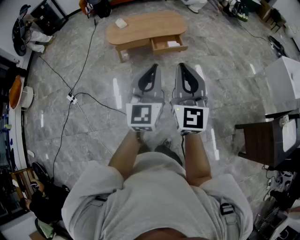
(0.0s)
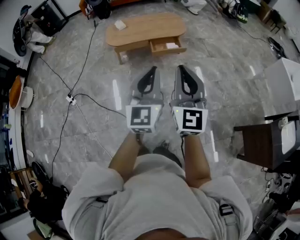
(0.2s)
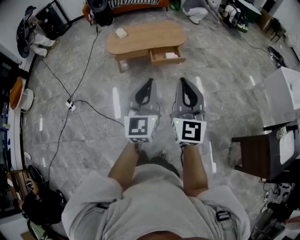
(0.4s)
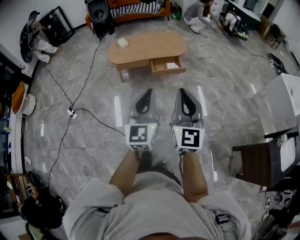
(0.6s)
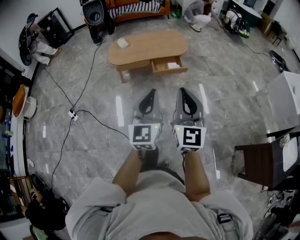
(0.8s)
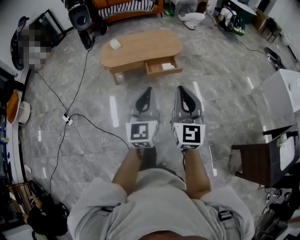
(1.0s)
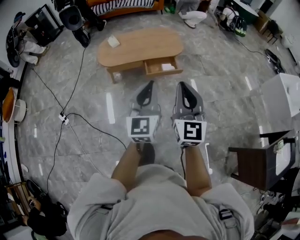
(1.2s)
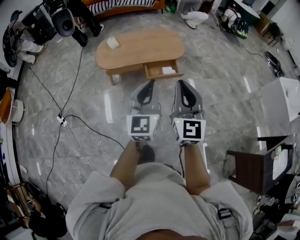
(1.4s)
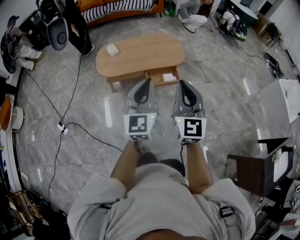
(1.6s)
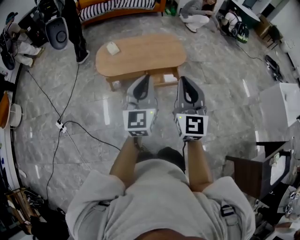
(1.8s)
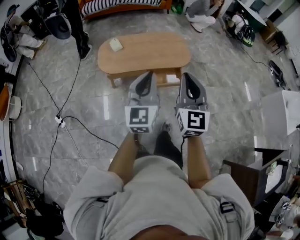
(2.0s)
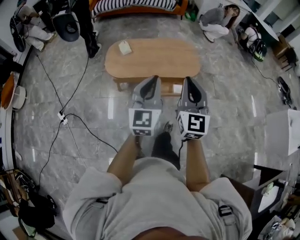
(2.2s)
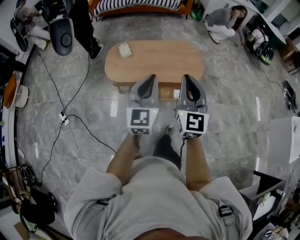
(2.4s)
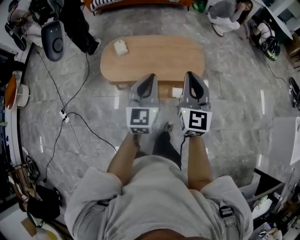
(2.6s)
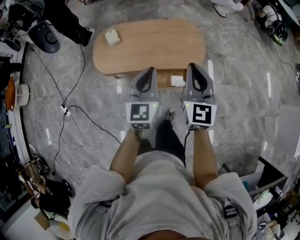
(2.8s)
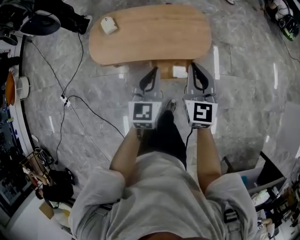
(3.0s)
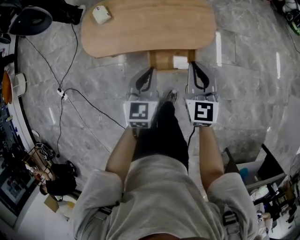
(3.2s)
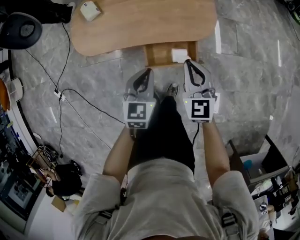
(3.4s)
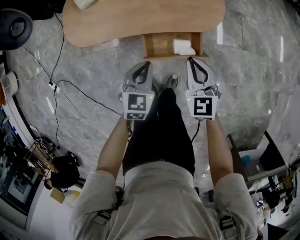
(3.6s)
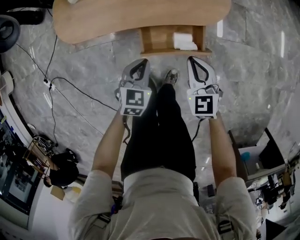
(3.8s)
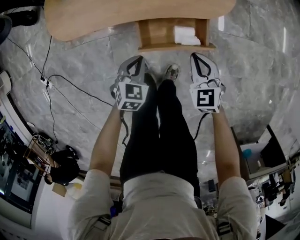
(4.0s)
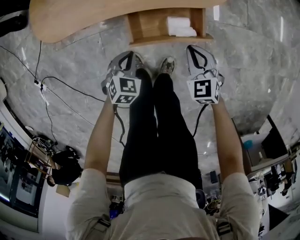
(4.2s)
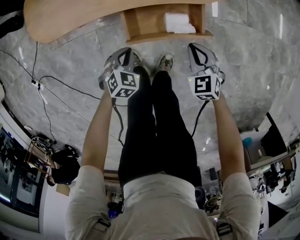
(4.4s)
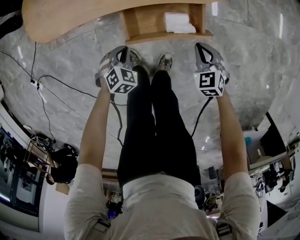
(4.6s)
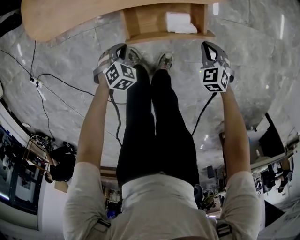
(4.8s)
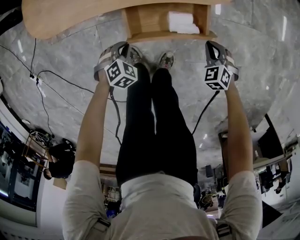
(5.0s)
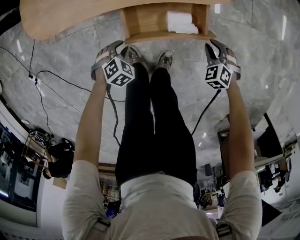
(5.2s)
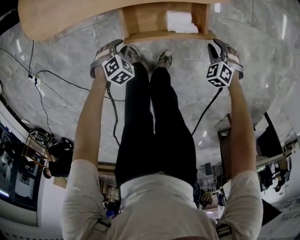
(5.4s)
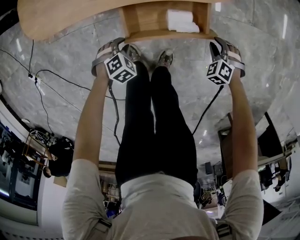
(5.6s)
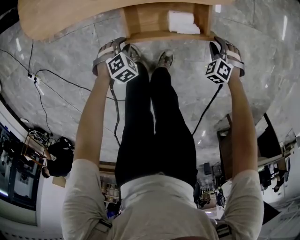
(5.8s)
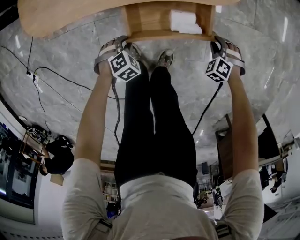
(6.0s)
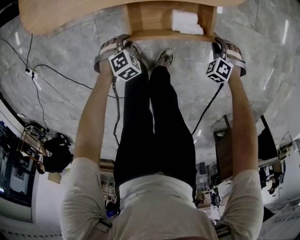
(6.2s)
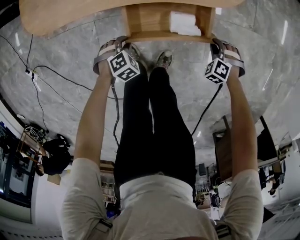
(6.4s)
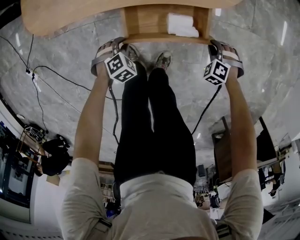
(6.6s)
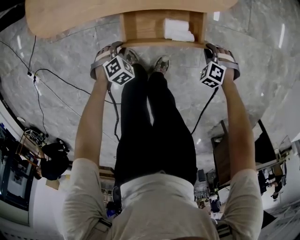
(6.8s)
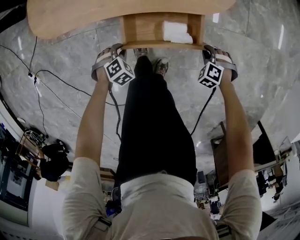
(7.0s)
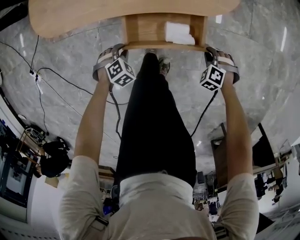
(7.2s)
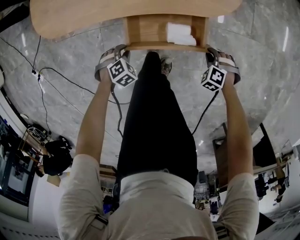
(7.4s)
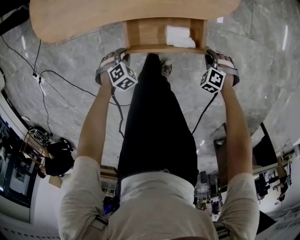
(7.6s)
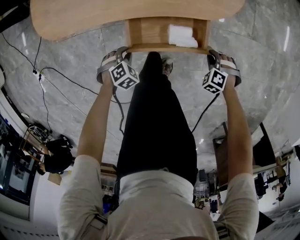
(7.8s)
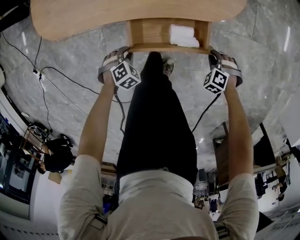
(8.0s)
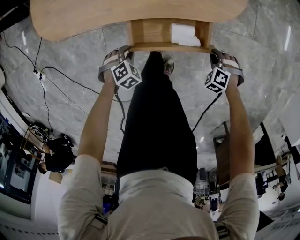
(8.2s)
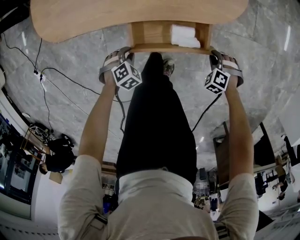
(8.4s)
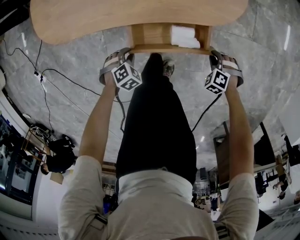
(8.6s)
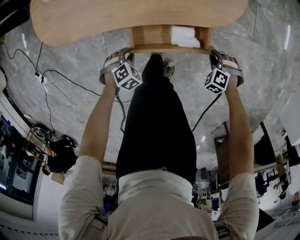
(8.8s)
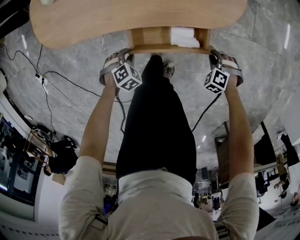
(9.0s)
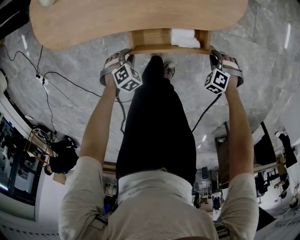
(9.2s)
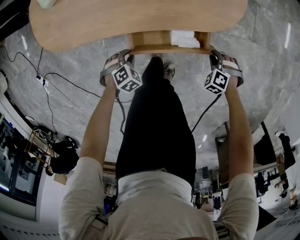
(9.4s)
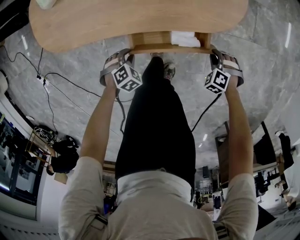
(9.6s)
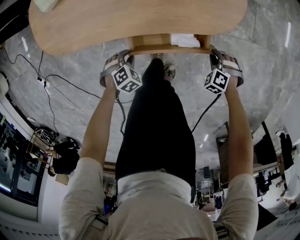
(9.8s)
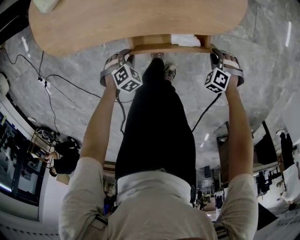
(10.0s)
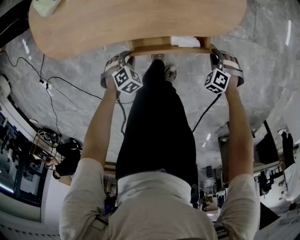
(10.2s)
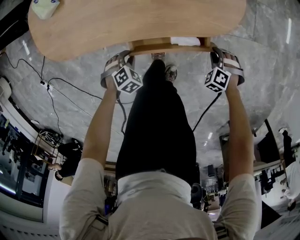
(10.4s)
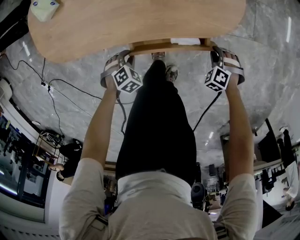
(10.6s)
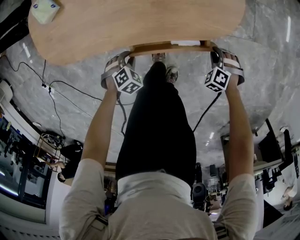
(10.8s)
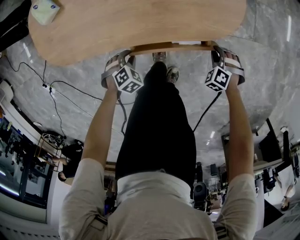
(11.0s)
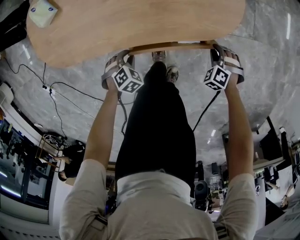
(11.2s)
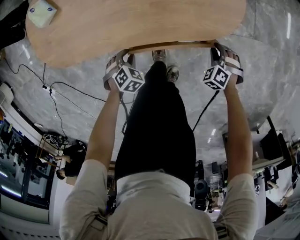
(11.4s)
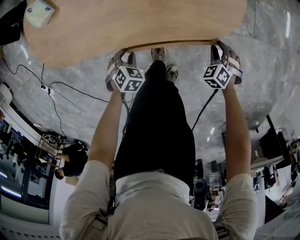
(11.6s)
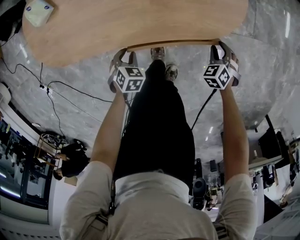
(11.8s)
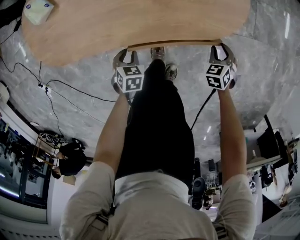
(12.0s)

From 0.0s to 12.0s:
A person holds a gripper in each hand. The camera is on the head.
From 0.0s to 1.6s: The grippers both shift forward by about 30 cm.
From 1.6s to 3.0s: Both grippers move forward and downward, some 40 cm. The right gripper swivels roughly 20 degrees. The left gripper swivels some 20 degrees.
From 3.0s to 4.4s: Both grippers travel together downward, approximately 50 cm. The left gripper tilts its fingers approximately 40 degrees downward. The right gripper points its fingers some 30 degrees further downward.
From 4.4s to 6.0s: The right gripper shifts approximately 15 cm downward, changes its angle by approximately 40 degrees, and opens its fingers; the left gripper travels downward by roughly 10 cm, turns by approximately 20 degrees, and opens up.
From 6.0s to 9.0s: There are only small adjustments of the grippers.
From 9.0s to 10.4s: There are only small adjustments of the grippers.
From 10.4s to 12.0s: The left gripper rolls counterclockwise, seen from behind, by approximately 40 degrees, while the right gripper twists about 40 degrees clockwise, seen from behind.

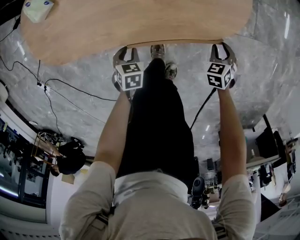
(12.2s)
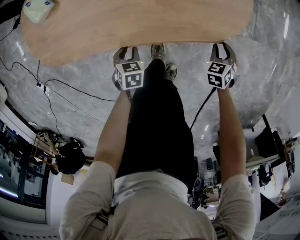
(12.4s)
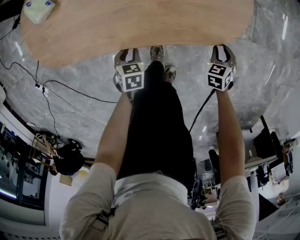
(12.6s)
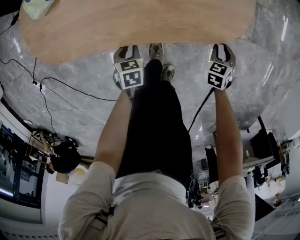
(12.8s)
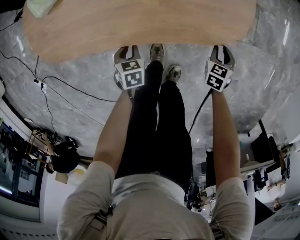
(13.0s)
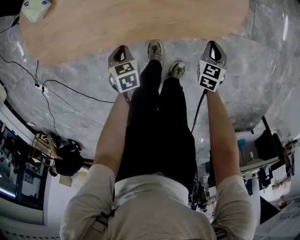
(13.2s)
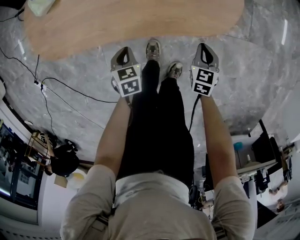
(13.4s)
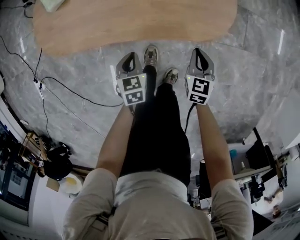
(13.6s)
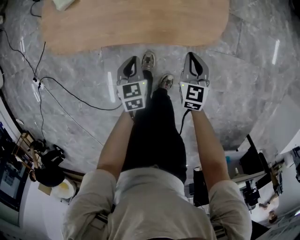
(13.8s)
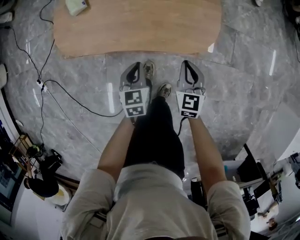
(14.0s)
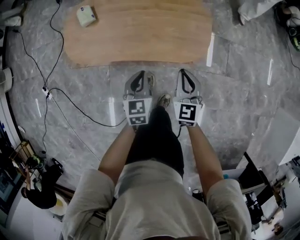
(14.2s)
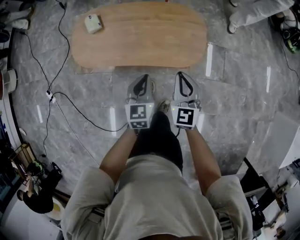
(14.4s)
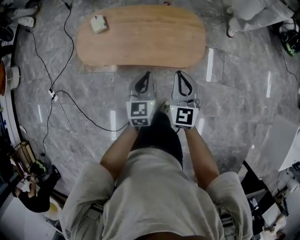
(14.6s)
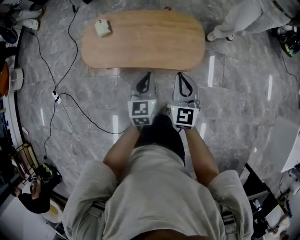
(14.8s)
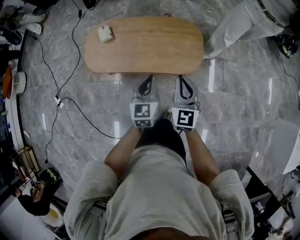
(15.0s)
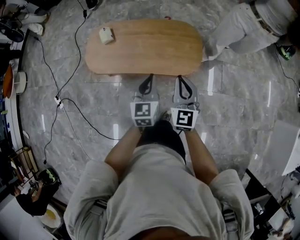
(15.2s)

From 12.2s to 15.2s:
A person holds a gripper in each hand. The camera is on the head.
From 12.2s to 13.8s: The left gripper moves upward, approximately 20 cm, swivels about 30 degrees, and closes up, while the right gripper moves upward and to the left, some 20 cm, rotates some 40 degrees, and closes.
From 13.8s to 15.2s: Both grippers move upward, approximately 35 cm. The left gripper changes its angle by about 30 degrees. Meanwhile the right gripper rotates roughly 30 degrees.

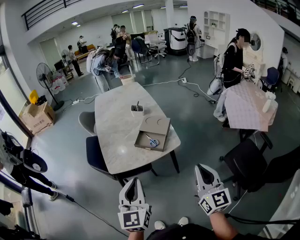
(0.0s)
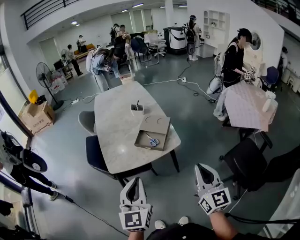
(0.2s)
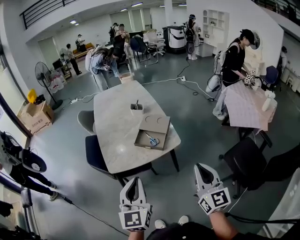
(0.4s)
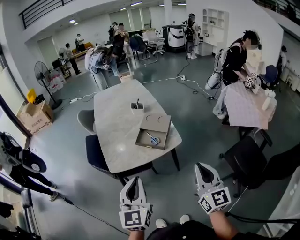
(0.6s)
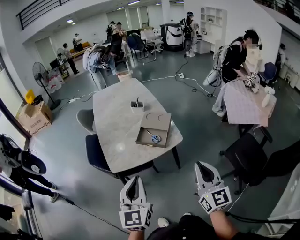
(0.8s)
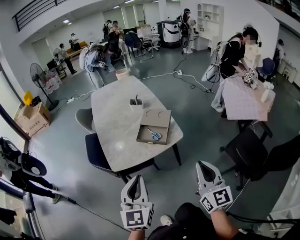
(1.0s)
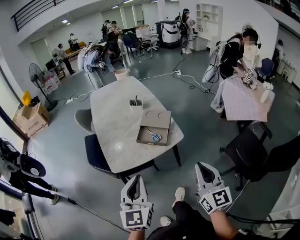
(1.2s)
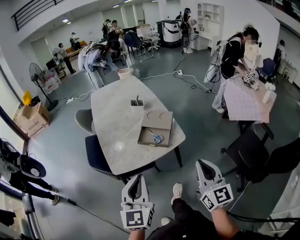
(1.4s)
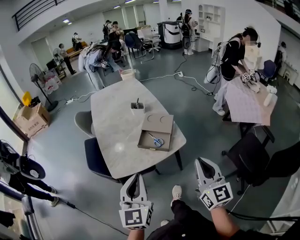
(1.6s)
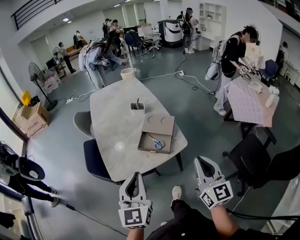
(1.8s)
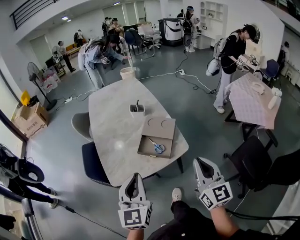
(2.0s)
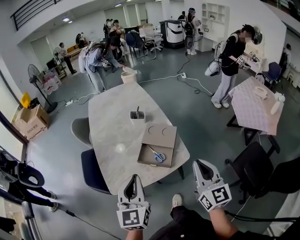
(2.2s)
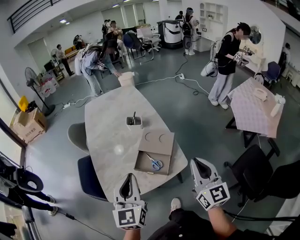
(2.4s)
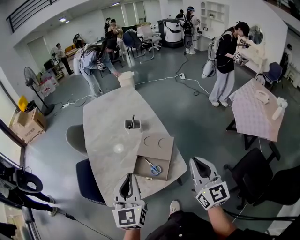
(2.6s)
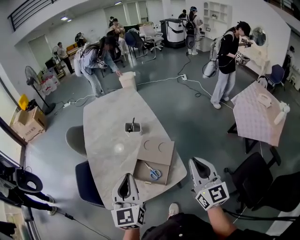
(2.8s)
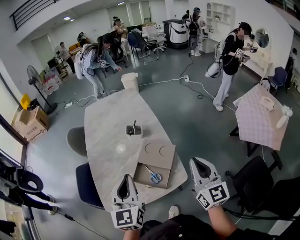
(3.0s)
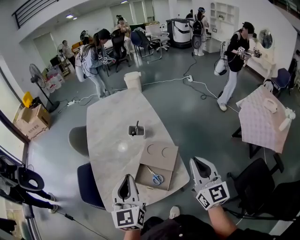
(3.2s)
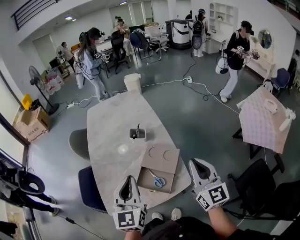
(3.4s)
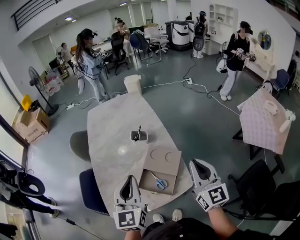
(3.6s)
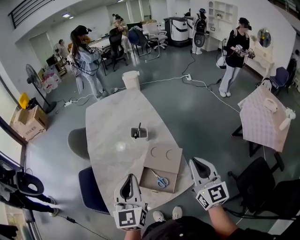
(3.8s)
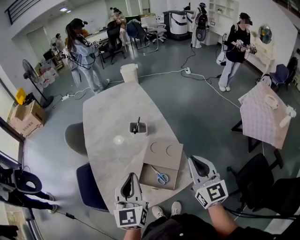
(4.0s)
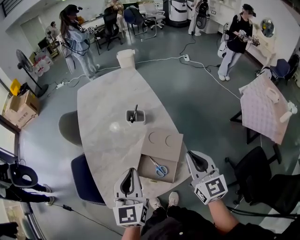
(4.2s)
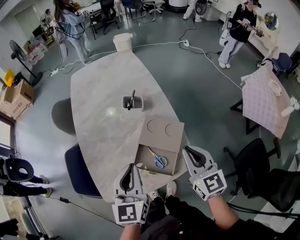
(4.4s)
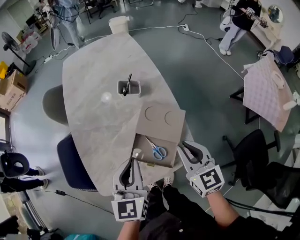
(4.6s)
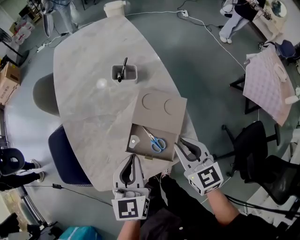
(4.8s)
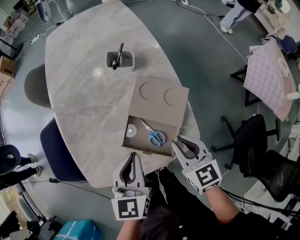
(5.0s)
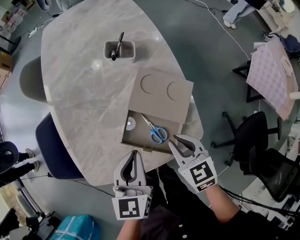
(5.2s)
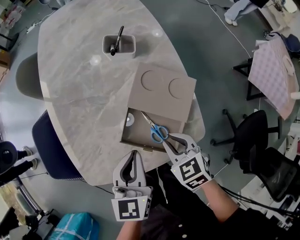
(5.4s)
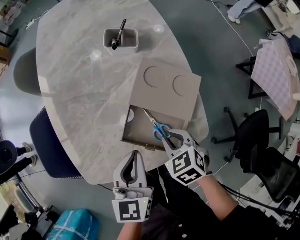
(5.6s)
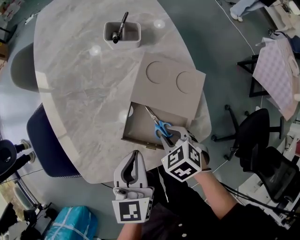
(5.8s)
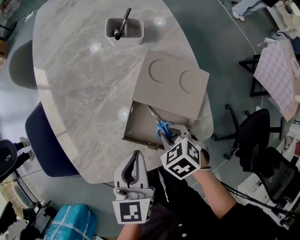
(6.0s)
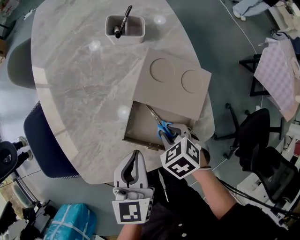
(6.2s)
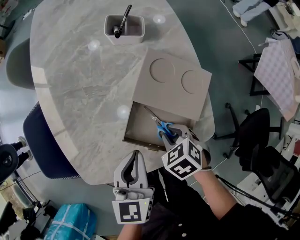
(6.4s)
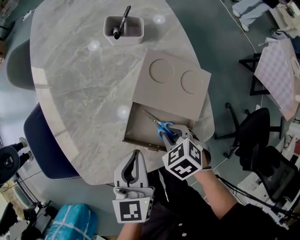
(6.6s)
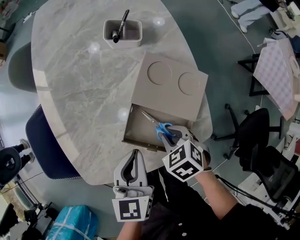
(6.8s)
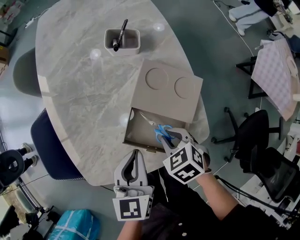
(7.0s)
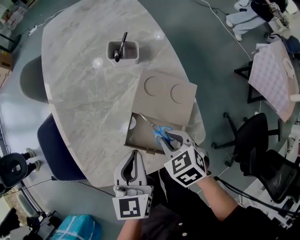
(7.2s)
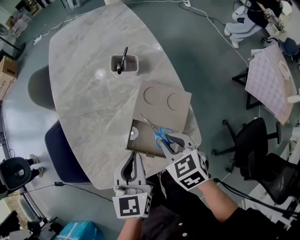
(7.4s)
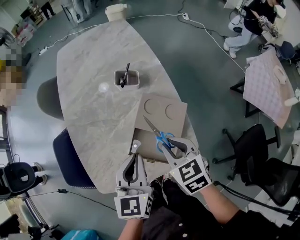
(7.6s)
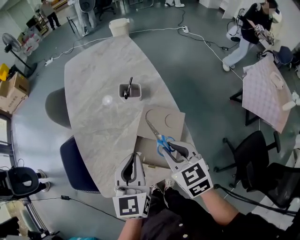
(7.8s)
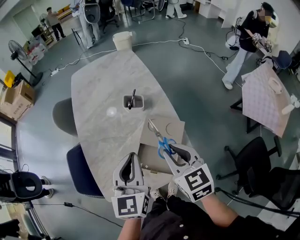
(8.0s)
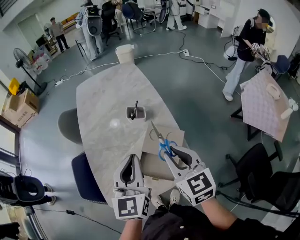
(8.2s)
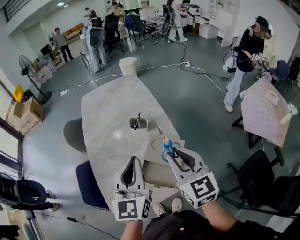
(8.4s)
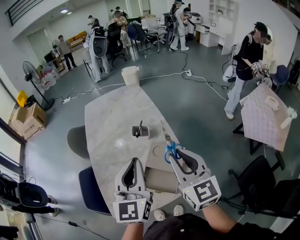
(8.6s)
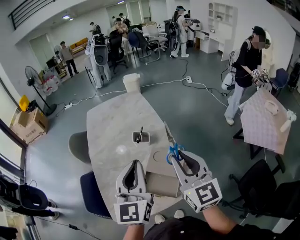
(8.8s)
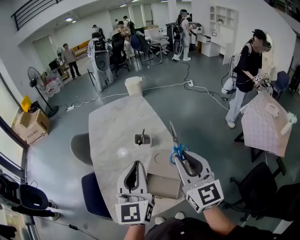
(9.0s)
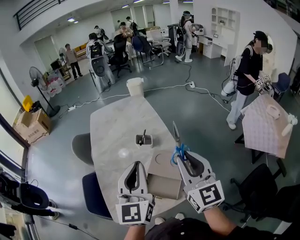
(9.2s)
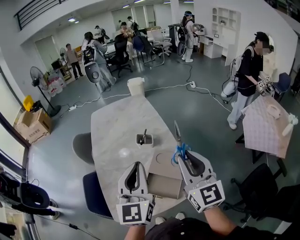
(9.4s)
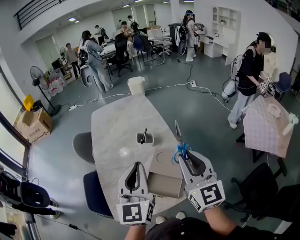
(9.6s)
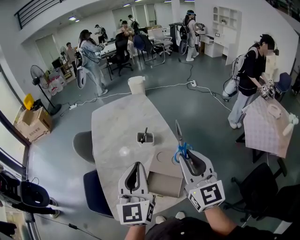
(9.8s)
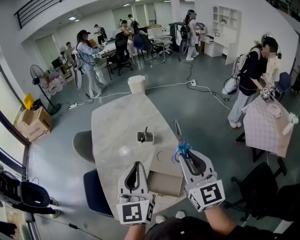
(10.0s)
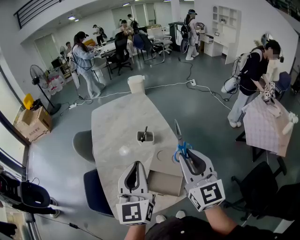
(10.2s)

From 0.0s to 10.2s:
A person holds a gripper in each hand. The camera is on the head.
From 0.0s to 1.4s: The right gripper shifts approximately 5 cm to the left. Meanwhile the left gripper changes place by roughly 5 cm.
From 1.4s to 3.0s: Both grippers move forward, roughly 30 cm.
From 3.0s to 4.4s: The right gripper heads downward, to the left and forward, covering roughly 15 cm, while the left gripper is displaced downward and forward by roughly 10 cm.
From 4.4s to 5.8s: The left gripper heads downward, covering approximately 20 cm. The right gripper heads downward, covering approximately 30 cm, and tilts its fingers some 60 degrees downward.
From 5.8s to 7.2s: The right gripper heads upward, covering some 5 cm.
From 7.2s to 8.8s: The two grippers go approximately 35 cm upward. The left gripper points its fingers some 30 degrees further upward. The right gripper angles its fingers upward, by approximately 60 degrees.
From 8.8s to 10.2s: The grippers move only a little.
